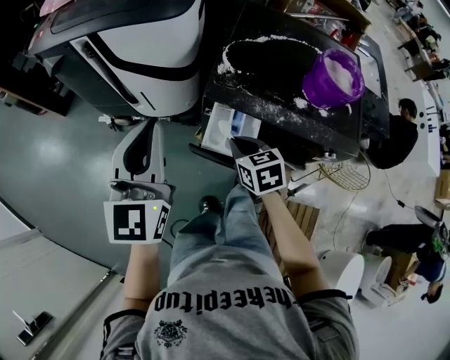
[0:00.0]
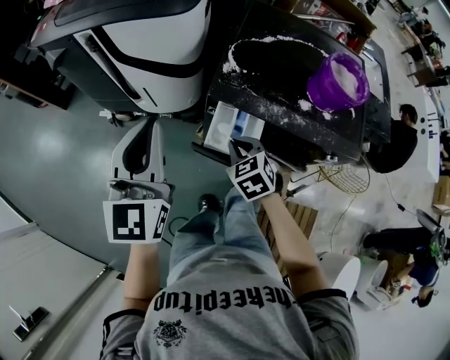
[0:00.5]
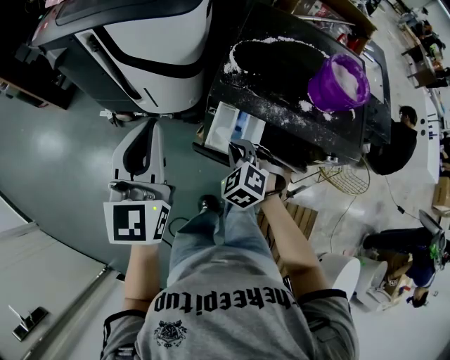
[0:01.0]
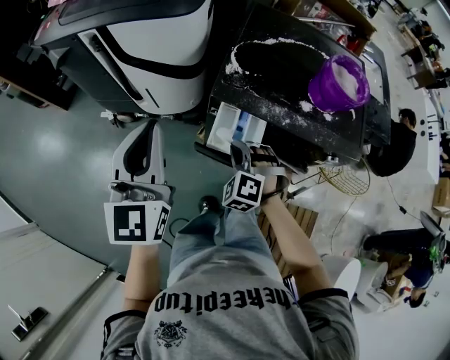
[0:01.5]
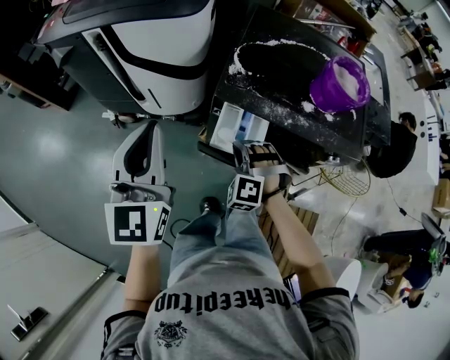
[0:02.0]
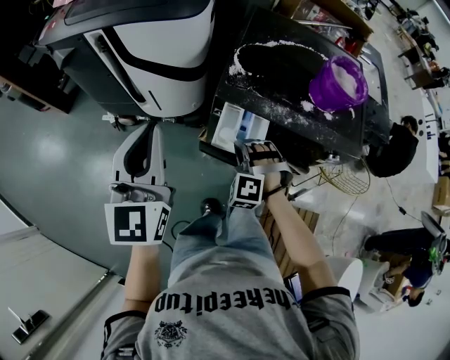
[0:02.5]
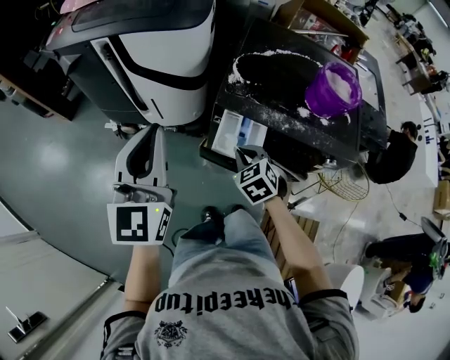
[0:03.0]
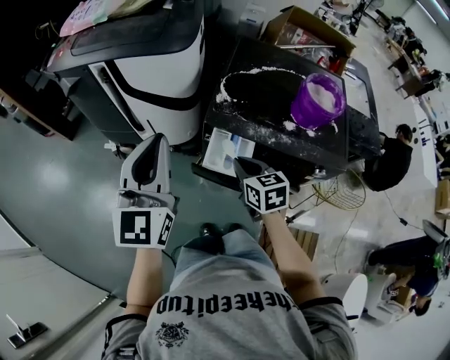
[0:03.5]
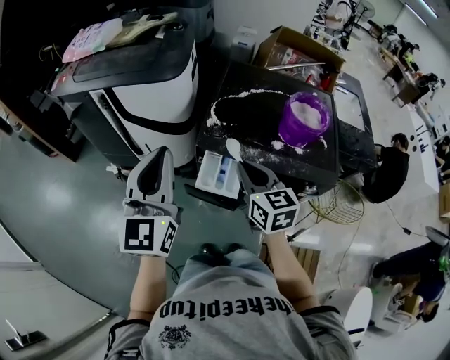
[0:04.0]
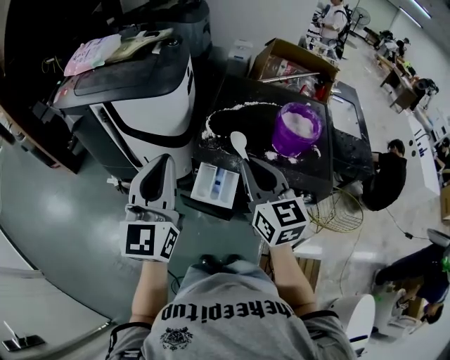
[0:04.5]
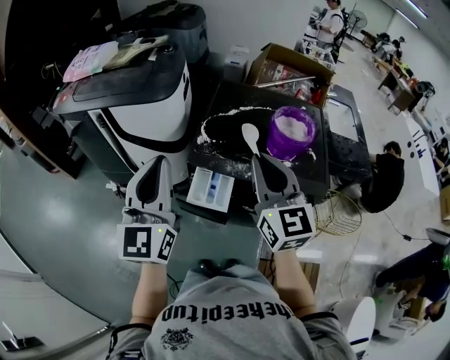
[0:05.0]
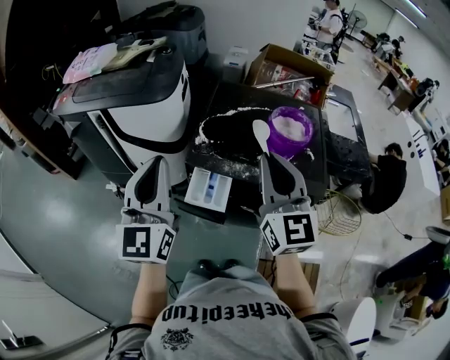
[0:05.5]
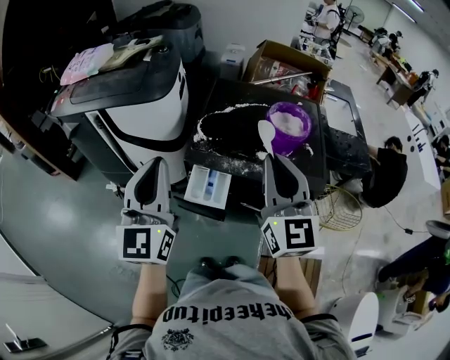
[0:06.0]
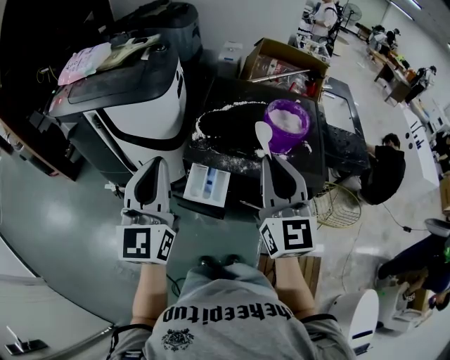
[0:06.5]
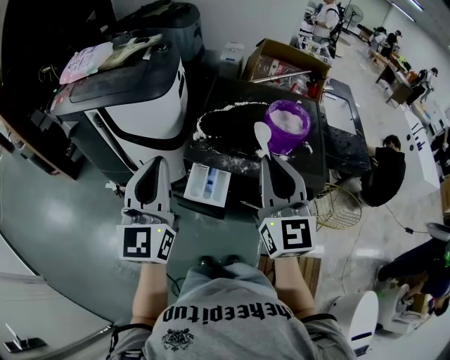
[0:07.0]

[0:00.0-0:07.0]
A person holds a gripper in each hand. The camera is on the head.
0:00.0 to 0:02.0: The right gripper rolls counterclockwise, seen from behind, by approximately 80 degrees.
0:02.0 to 0:03.5: The left gripper shifts roughly 5 cm upward; the right gripper shifts about 10 cm upward, and rotates around the line of its fingers by roughly 80 degrees, clockwise from behind.
0:03.5 to 0:05.0: The right gripper moves upward, some 25 cm, and tips its fingers upward by approximately 40 degrees. Meanwhile the left gripper is displaced to the right and upward by about 10 cm.
0:05.0 to 0:07.0: The grippers stay close to where they were, moving slightly.

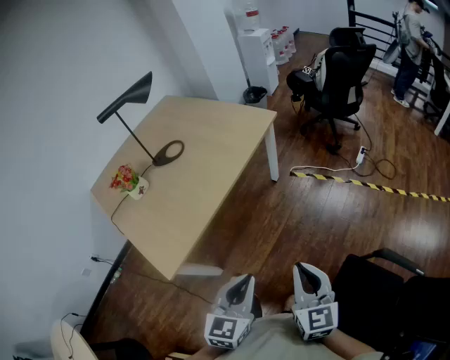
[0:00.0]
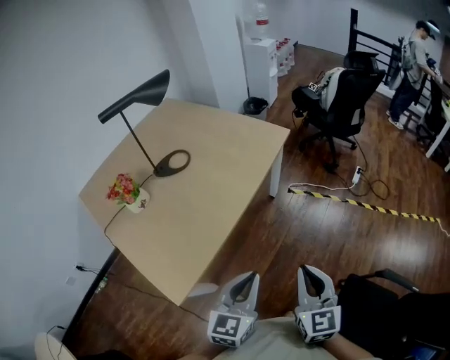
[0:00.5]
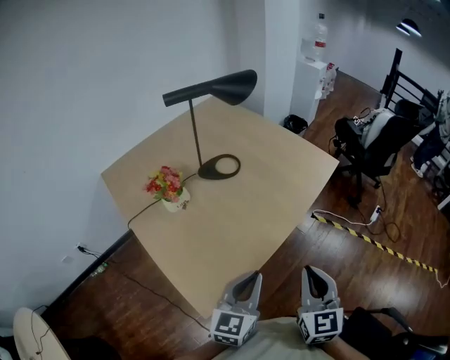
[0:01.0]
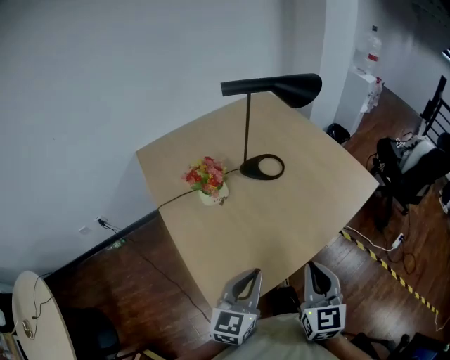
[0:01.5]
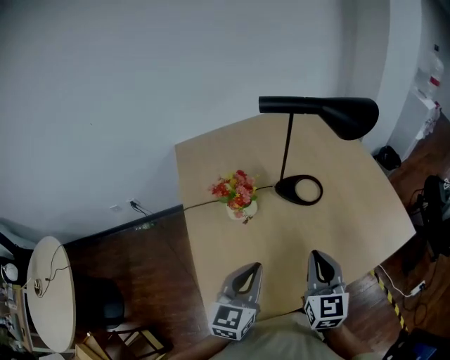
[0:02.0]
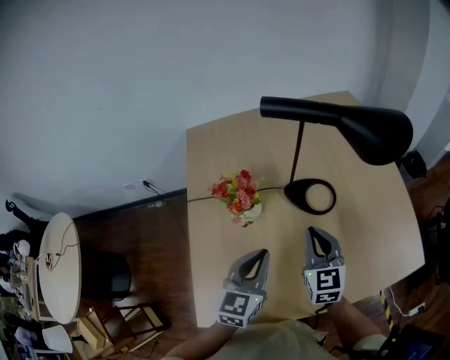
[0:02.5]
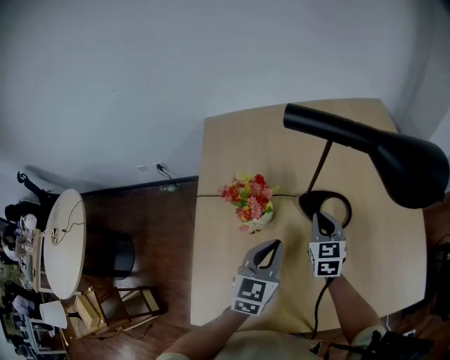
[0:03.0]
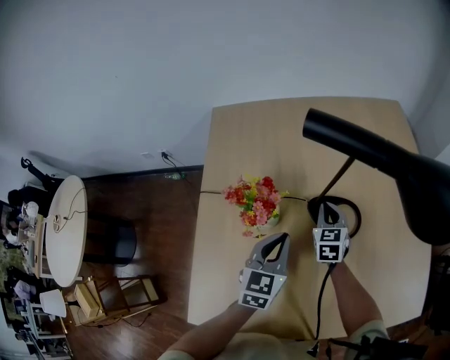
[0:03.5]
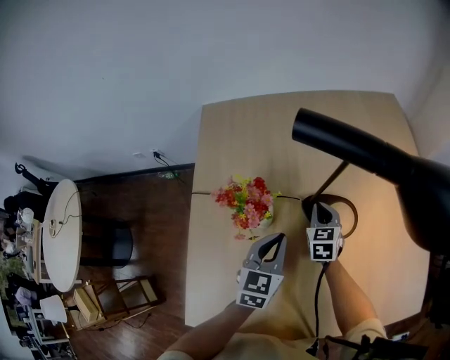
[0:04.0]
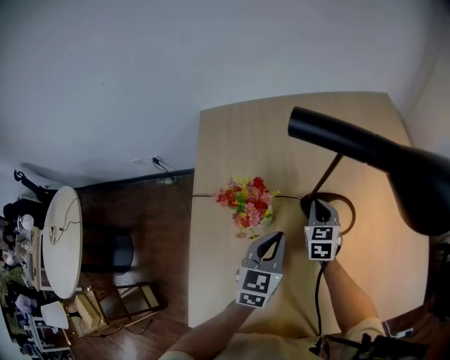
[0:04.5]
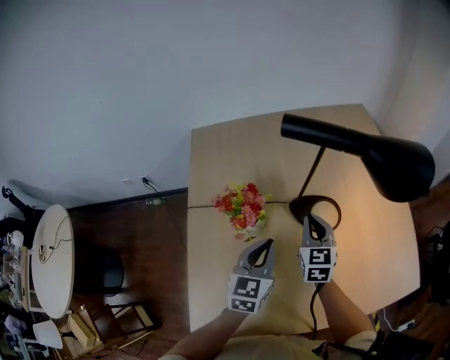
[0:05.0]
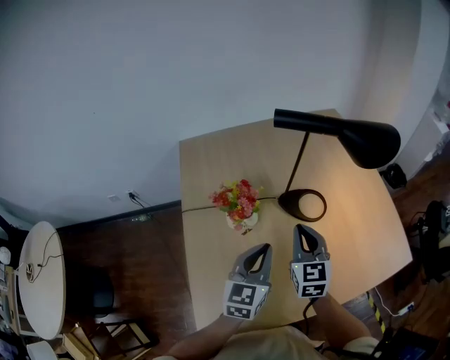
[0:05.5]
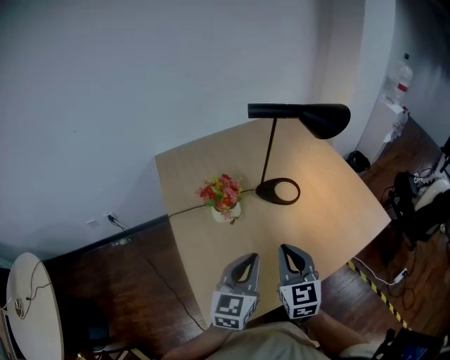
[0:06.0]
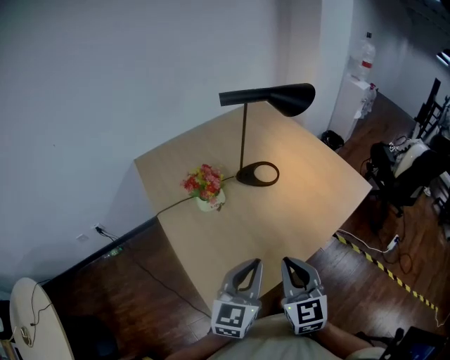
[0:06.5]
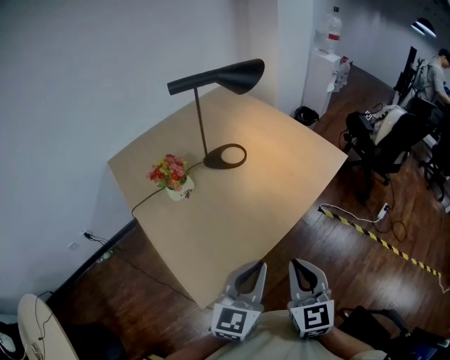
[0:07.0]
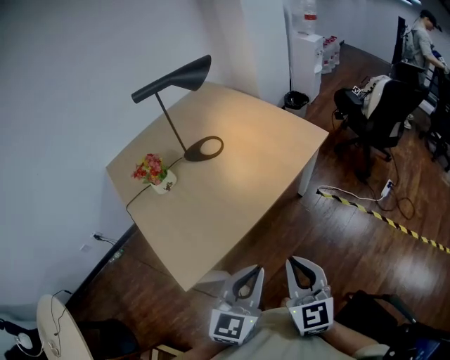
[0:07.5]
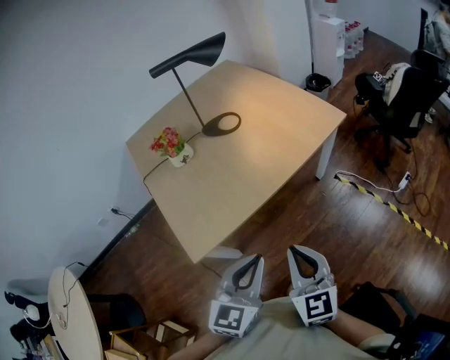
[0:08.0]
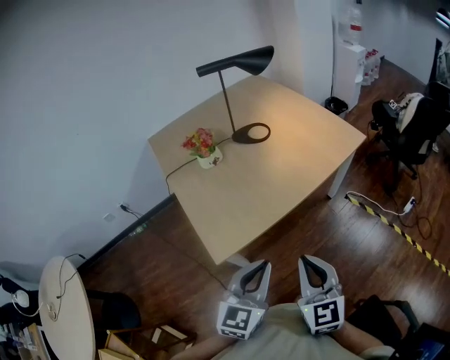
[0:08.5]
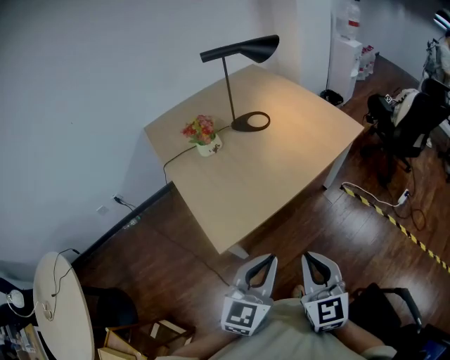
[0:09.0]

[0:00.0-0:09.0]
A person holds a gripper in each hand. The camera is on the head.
0:00.0 to 0:02.0: The two grippers travel together, some 50 cm. The left gripper swivels roughly 40 degrees; the right gripper turns by some 30 degrees.
0:02.0 to 0:04.5: The right gripper moves forward and downward, about 35 cm, and changes its angle by about 20 degrees. Meanwhile the left gripper is displaced forward and downward by some 20 cm.
0:04.5 to 0:07.0: The left gripper moves about 40 cm, and rotates about 50 degrees, while the right gripper shifts by some 60 cm, and turns by some 40 degrees.
0:07.0 to 0:09.0: Both grippers travel together backward, approximately 15 cm.

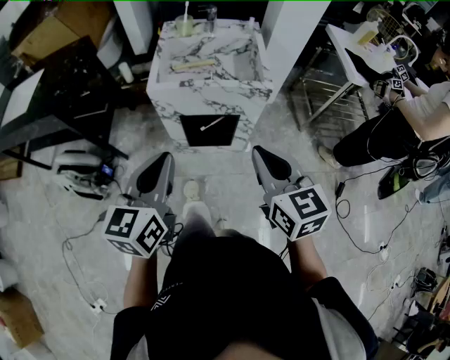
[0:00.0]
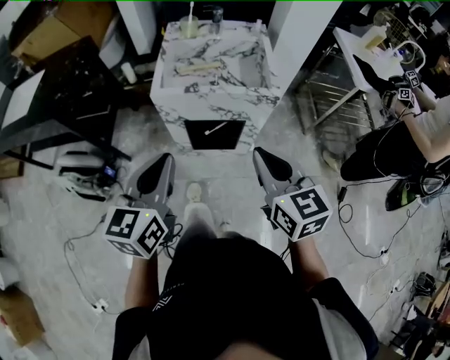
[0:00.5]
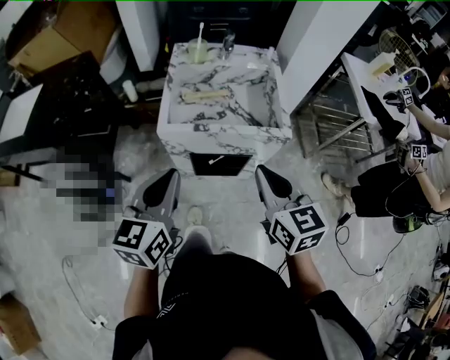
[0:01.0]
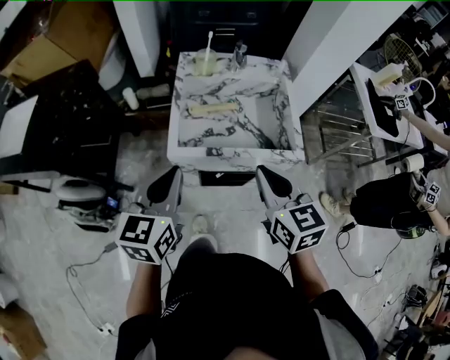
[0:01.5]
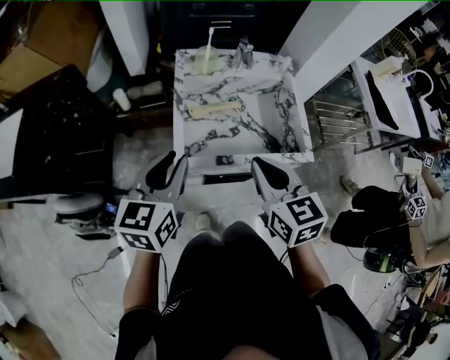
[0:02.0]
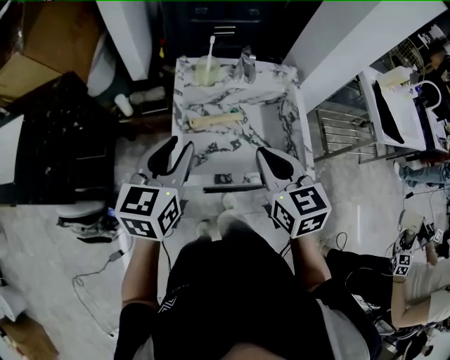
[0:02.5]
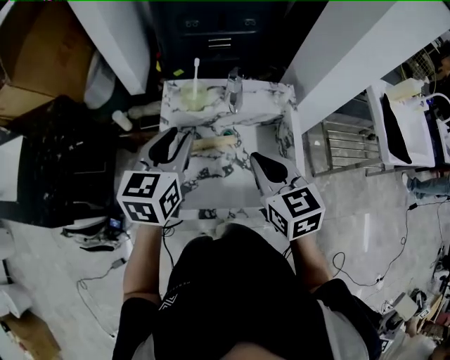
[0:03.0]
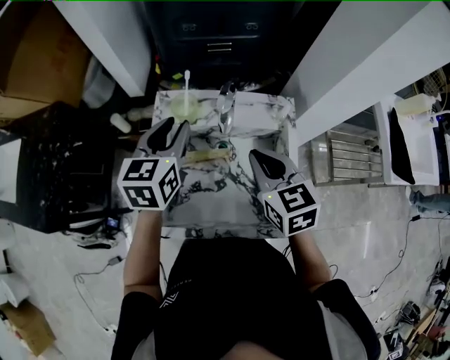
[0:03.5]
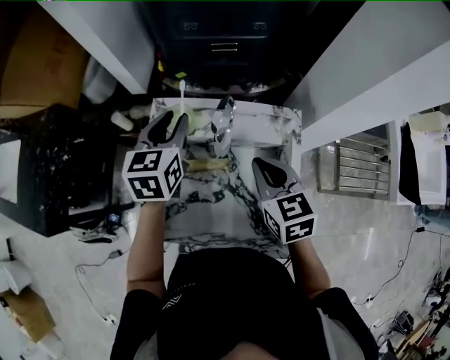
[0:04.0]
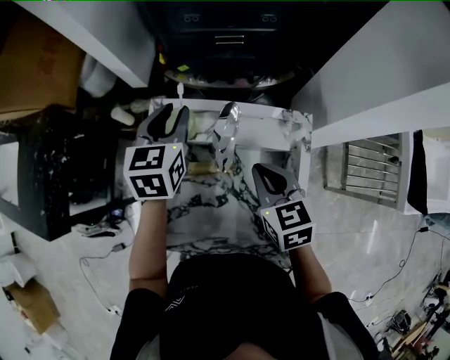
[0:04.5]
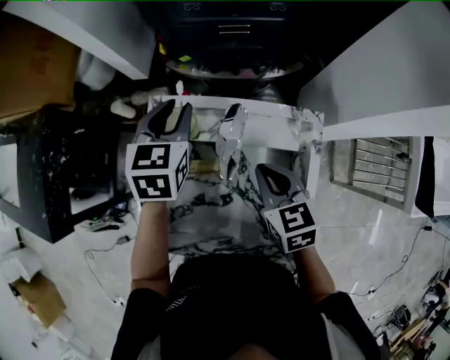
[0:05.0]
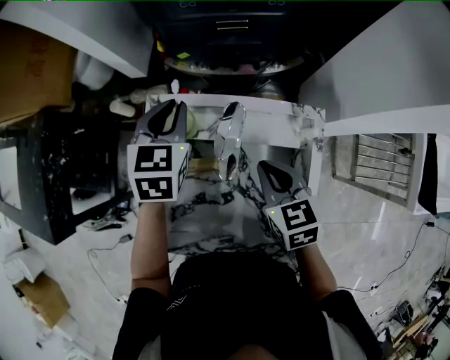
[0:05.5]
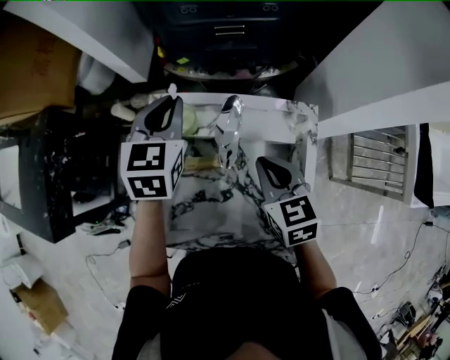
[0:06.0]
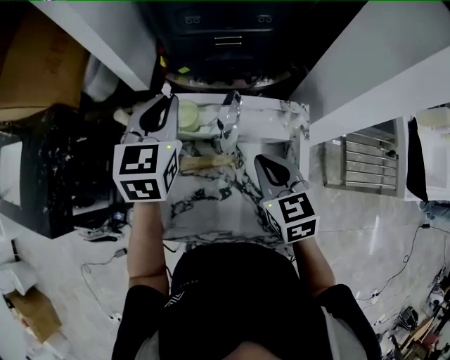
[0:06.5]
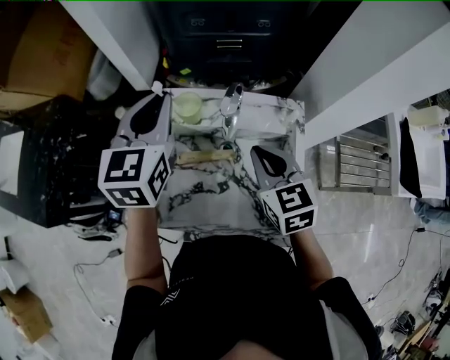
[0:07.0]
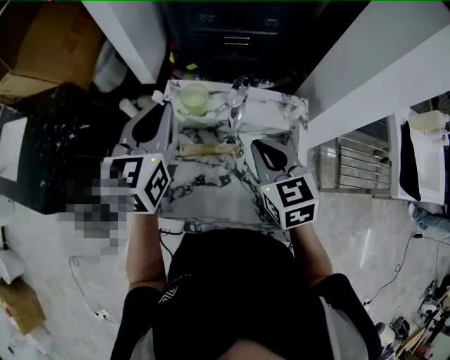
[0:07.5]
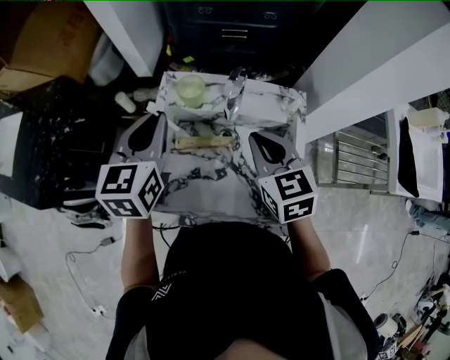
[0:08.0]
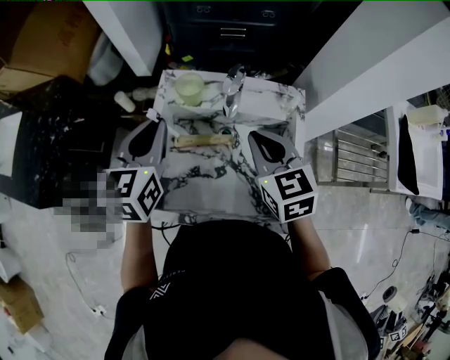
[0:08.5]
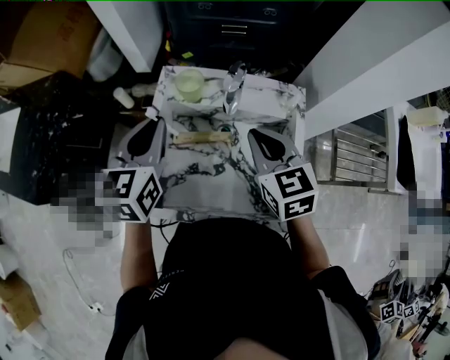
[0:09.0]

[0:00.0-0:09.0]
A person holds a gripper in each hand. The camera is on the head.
0:00.0 to 0:02.0: The left gripper goes some 30 cm forward, and opens. The right gripper shifts some 30 cm forward and to the left.
0:02.0 to 0:04.5: The left gripper heads forward, covering approximately 35 cm, and swivels approximately 20 degrees; the right gripper shifts some 30 cm forward and to the right.
0:04.5 to 0:07.0: The left gripper shifts some 15 cm upward and backward, and closes its fingers. Meanwhile the right gripper heads upward, covering about 5 cm.
0:07.0 to 0:09.0: The left gripper travels backward and downward by approximately 10 cm.

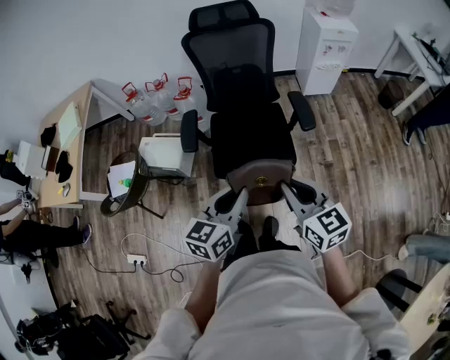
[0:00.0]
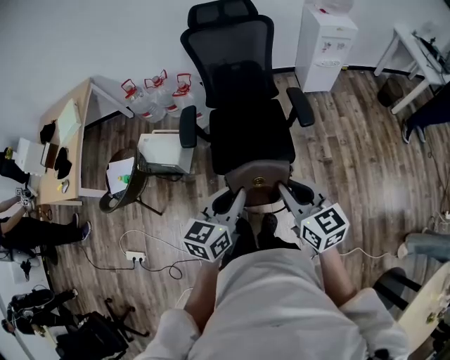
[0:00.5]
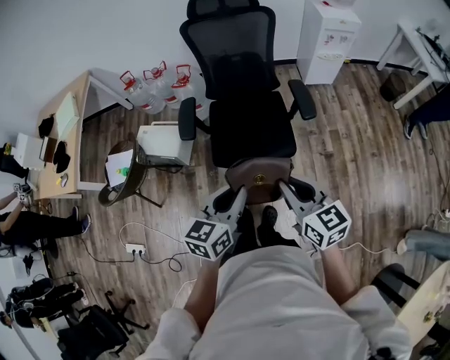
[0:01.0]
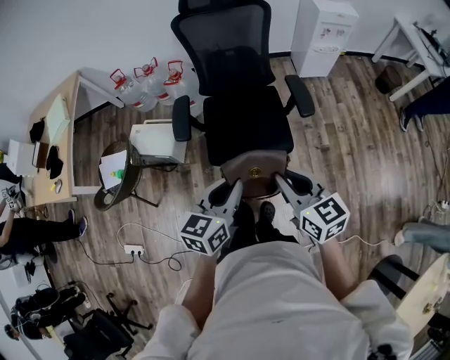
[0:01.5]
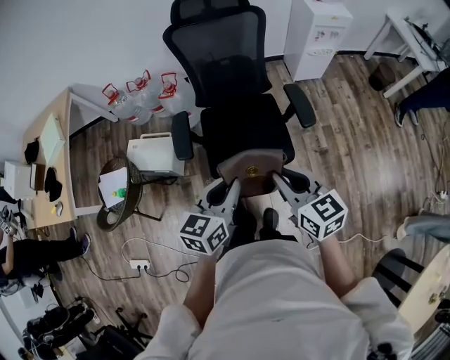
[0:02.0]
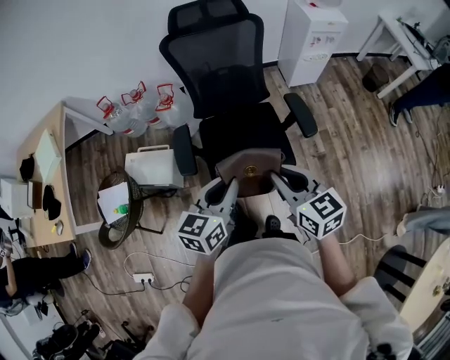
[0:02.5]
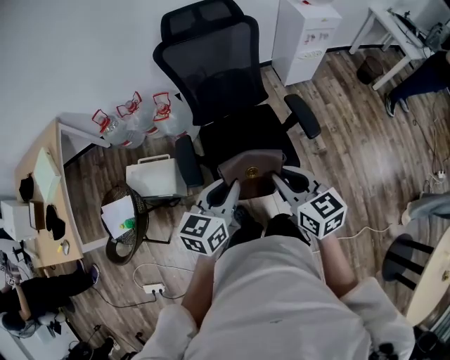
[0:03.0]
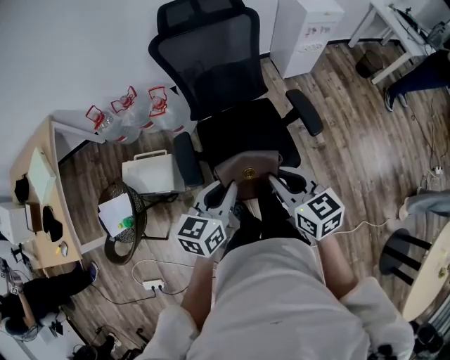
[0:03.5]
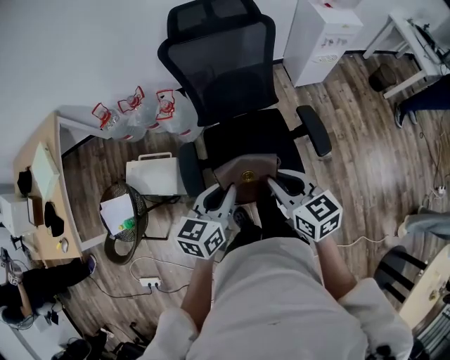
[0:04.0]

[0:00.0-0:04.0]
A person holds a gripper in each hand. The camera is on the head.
0:00.0 to 0:02.0: Both grippers move forward, some 10 cm.
0:02.0 to 0:04.0: The two grippers go roughly 15 cm forward and to the left.
